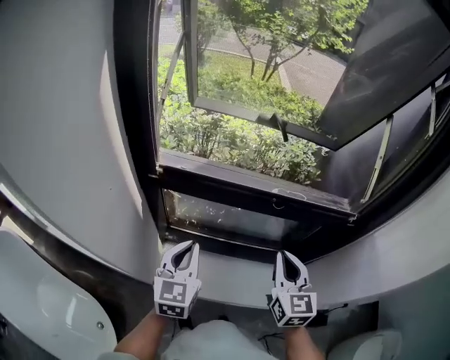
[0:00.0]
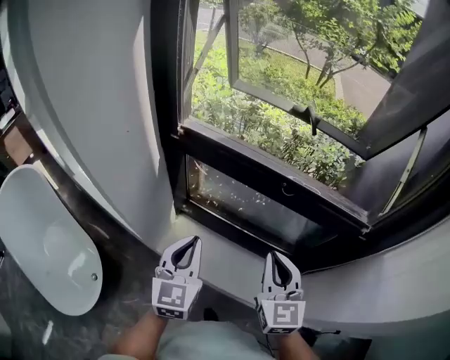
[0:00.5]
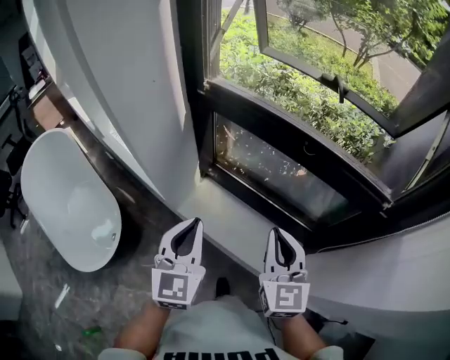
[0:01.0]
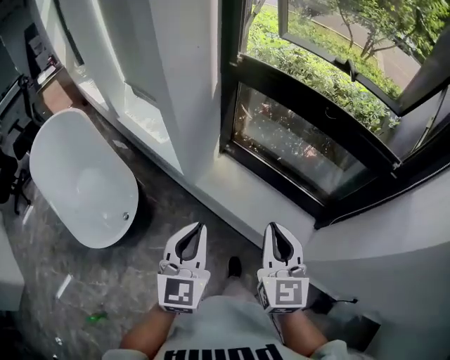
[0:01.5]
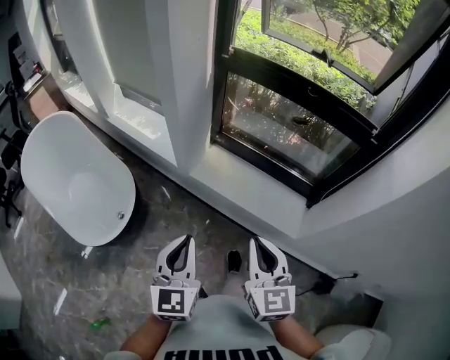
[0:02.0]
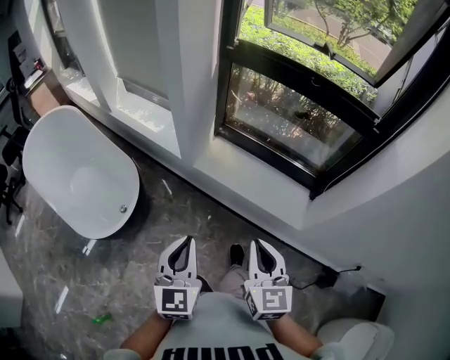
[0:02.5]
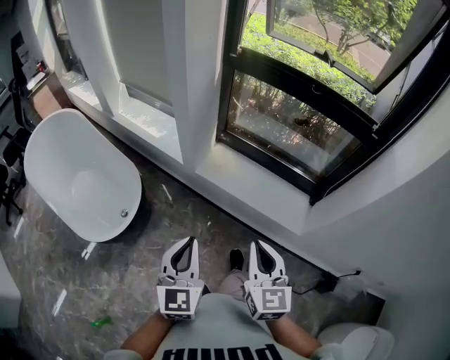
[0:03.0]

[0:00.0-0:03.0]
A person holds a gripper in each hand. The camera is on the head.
0:00.0 to 0:01.5: The right gripper shifts by approximately 25 cm, and rotates roughly 30 degrees. The left gripper moves approximately 35 cm, and turns by about 30 degrees.
0:01.5 to 0:03.0: The two grippers go about 20 cm backward and to the left.

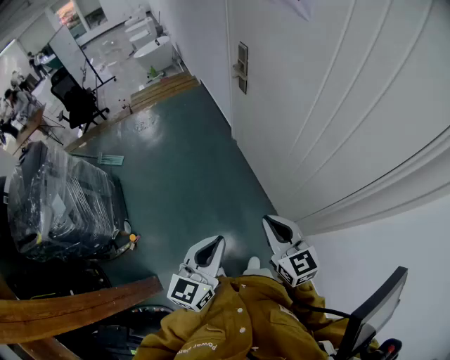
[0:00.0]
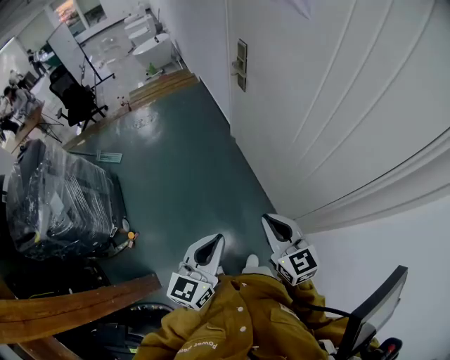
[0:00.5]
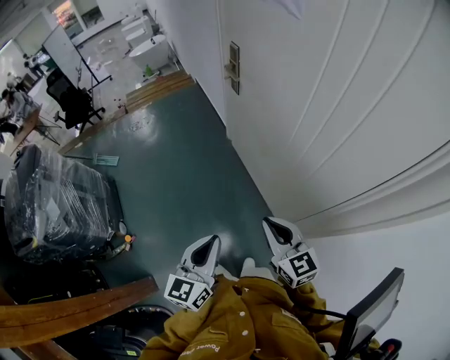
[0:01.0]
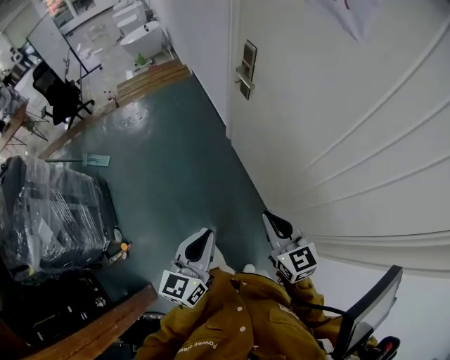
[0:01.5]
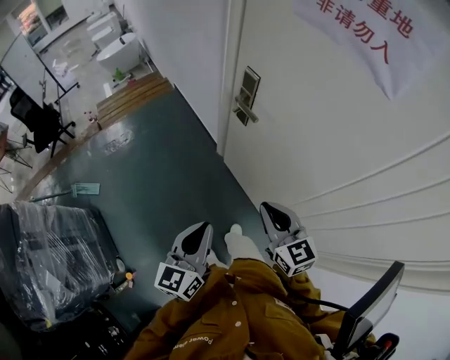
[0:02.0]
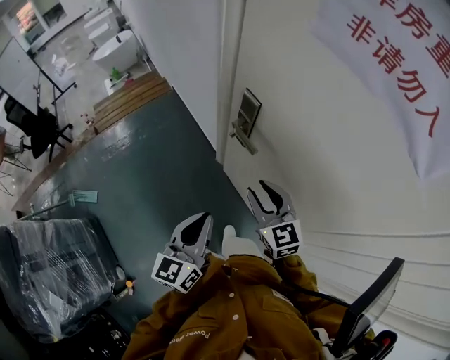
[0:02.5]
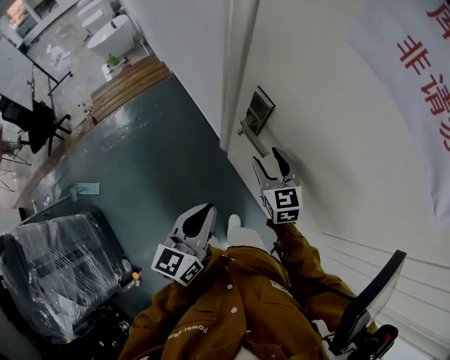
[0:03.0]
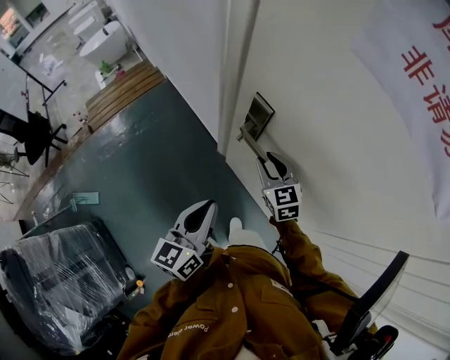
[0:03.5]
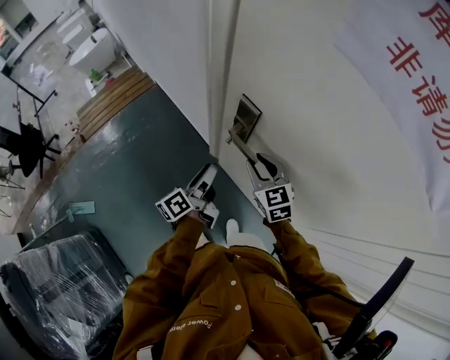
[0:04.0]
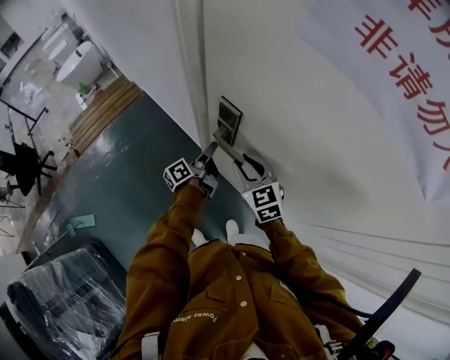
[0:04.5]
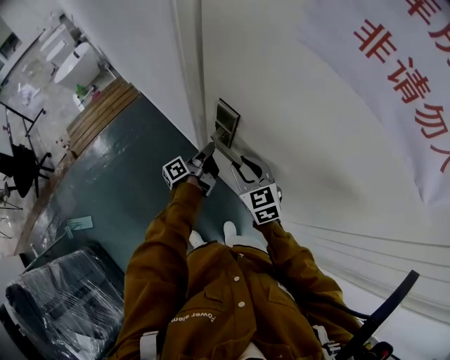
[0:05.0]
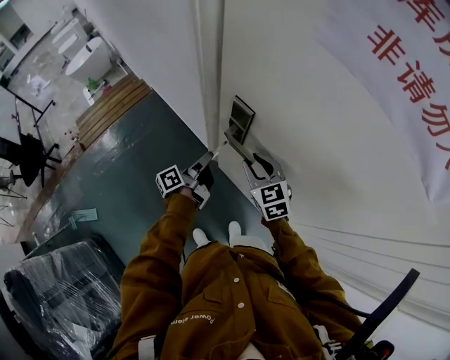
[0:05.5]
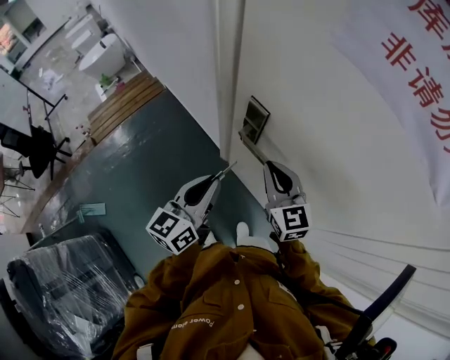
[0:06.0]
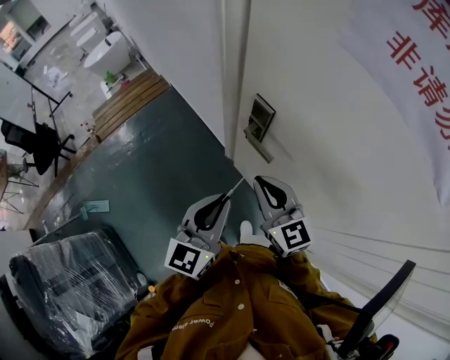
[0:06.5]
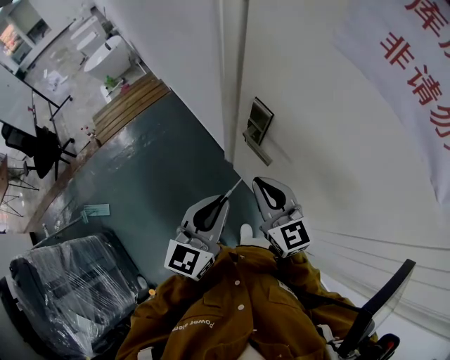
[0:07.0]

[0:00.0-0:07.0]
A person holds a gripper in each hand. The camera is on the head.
0:00.0 to 0:02.0: Both grippers travel together forward, about 35 cm.
0:02.0 to 0:03.5: Both grippers move forward, about 30 cm. The right gripper opens up.
0:03.5 to 0:05.0: The left gripper goes about 30 cm forward and downward, rotates around the line of its fingers by some 60 degrees, counterclockwise from behind, and opens and closes again.
0:05.0 to 0:07.0: The left gripper is displaced backward and upward by approximately 30 cm, and rotates around the line of its fingers by some 80 degrees, clockwise from behind. Meanwhile the right gripper goes roughly 15 cm upward and backward, swivels approximately 20 degrees, and closes its fingers.

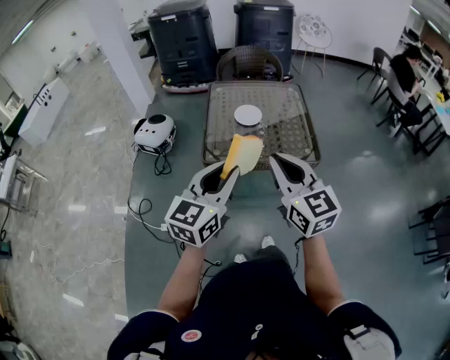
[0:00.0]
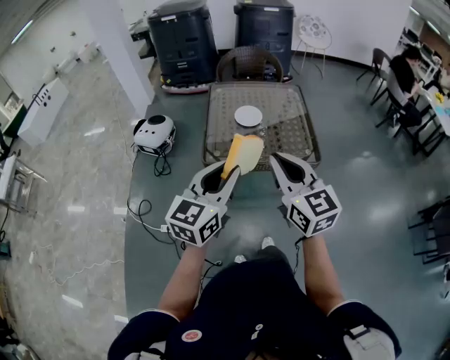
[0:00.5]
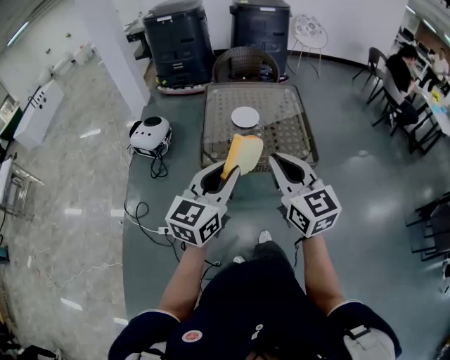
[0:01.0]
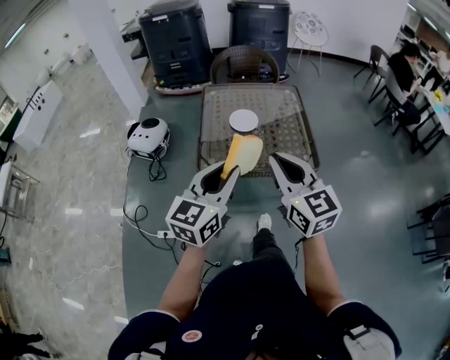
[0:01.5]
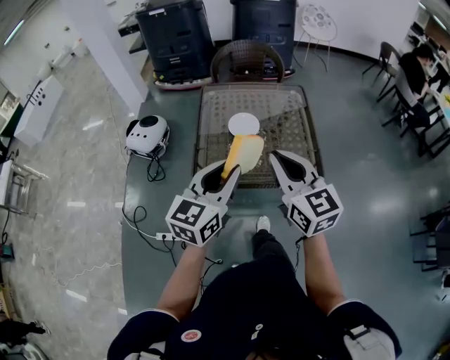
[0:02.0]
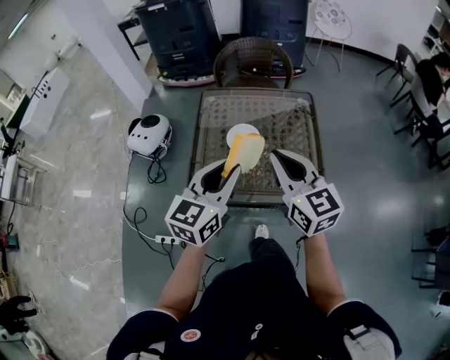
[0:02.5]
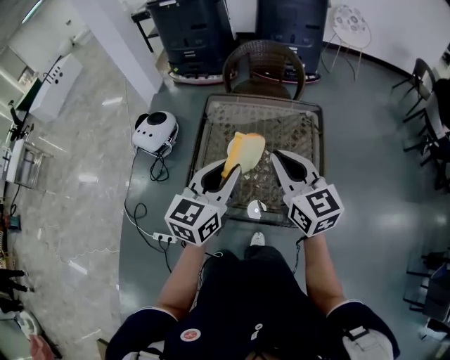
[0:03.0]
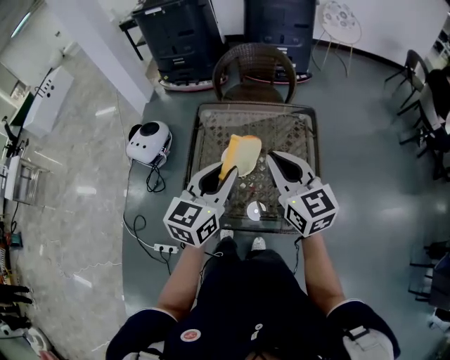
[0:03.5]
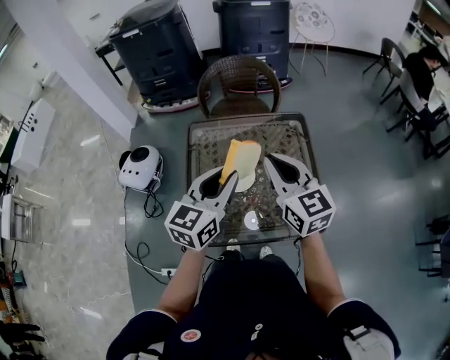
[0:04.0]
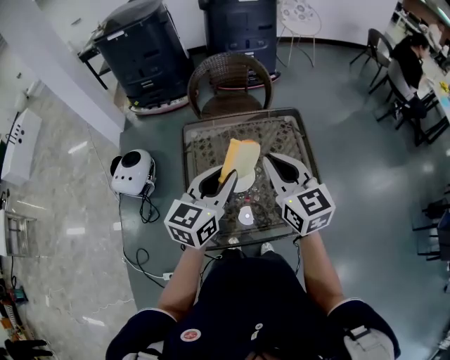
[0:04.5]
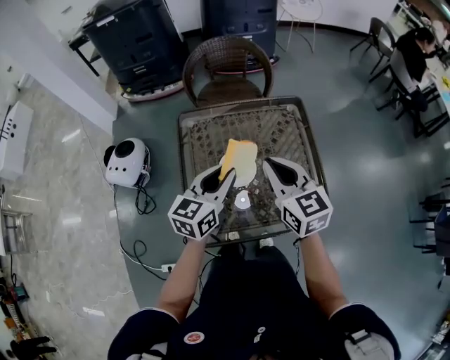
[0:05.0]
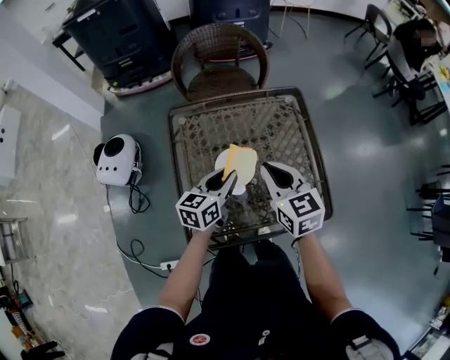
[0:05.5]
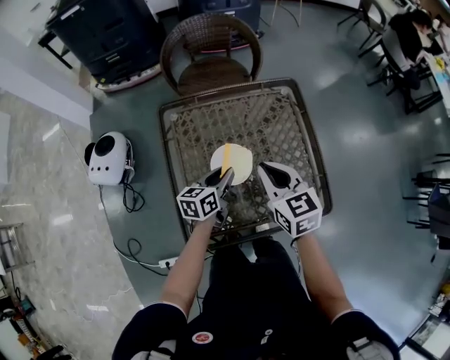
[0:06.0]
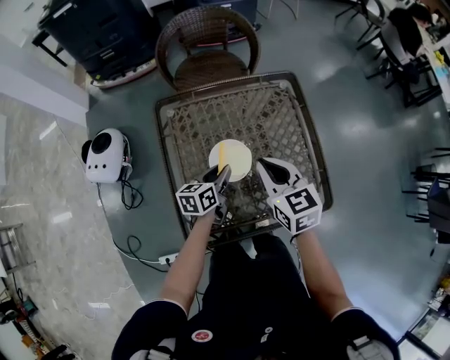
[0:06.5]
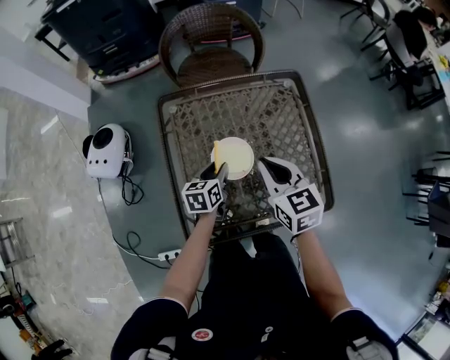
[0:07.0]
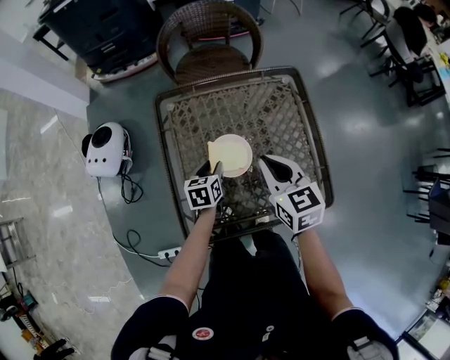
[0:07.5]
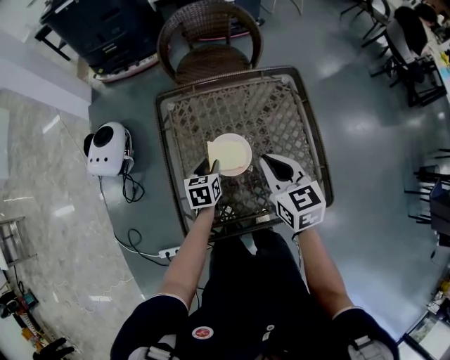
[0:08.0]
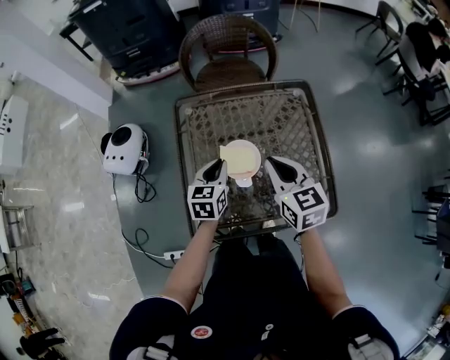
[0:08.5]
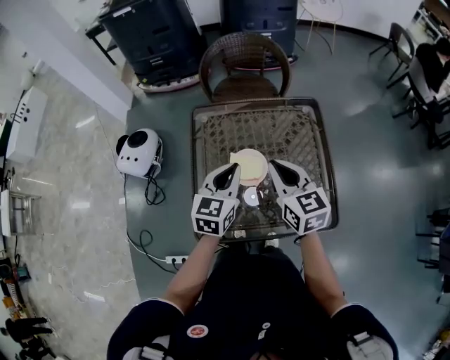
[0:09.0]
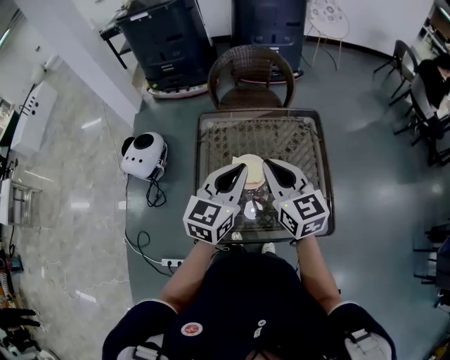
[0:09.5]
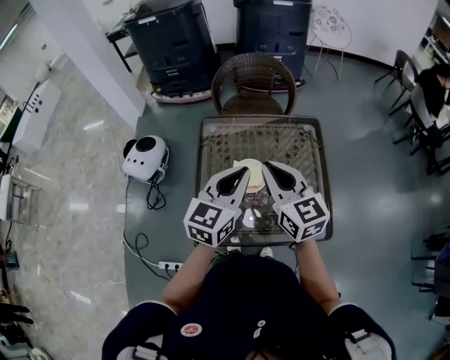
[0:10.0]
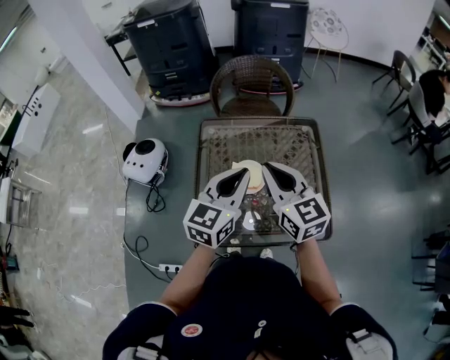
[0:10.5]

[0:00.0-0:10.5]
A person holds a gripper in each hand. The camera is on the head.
0:00.0 to 0:02.0: The grippers both shift forward by about 15 cm.
0:02.0 to 0:04.0: Both grippers travel together forward, about 25 cm.
0:04.0 to 0:06.5: The left gripper is displaced downward by roughly 30 cm, and rotates roughly 40 degrees; the right gripper shifts some 15 cm downward, and rotates approximately 30 degrees.
0:06.5 to 0:08.5: The left gripper goes some 5 cm upward, and changes its angle by roughly 30 degrees.
0:08.5 to 0:10.5: The right gripper travels upward by some 15 cm, and swivels about 20 degrees; the left gripper heads upward, covering some 20 cm, and changes its angle by roughly 30 degrees.

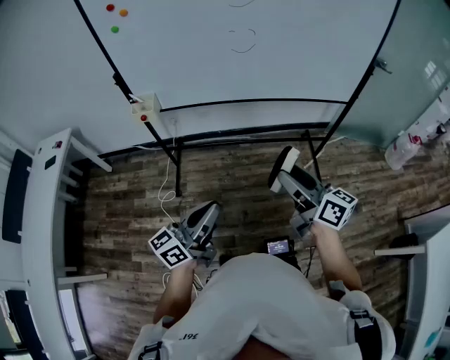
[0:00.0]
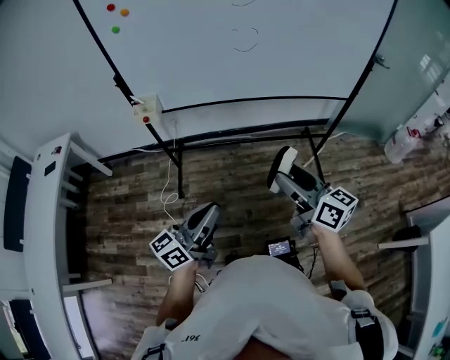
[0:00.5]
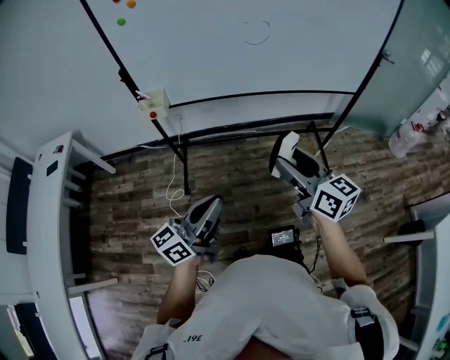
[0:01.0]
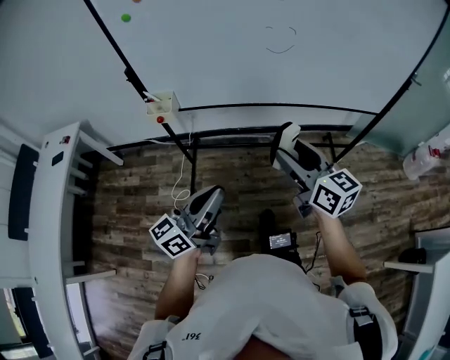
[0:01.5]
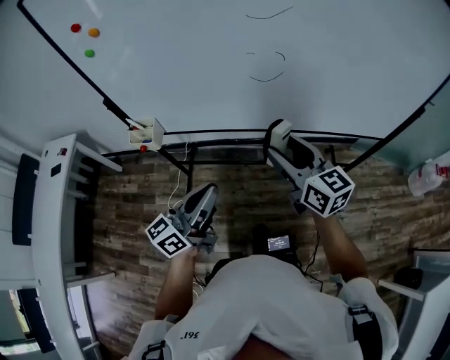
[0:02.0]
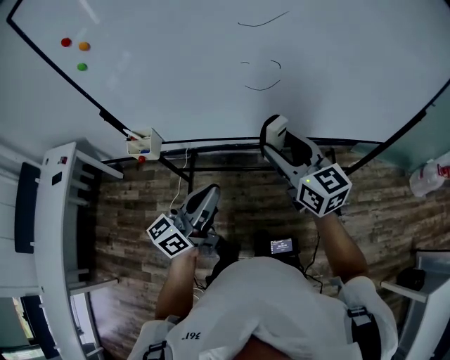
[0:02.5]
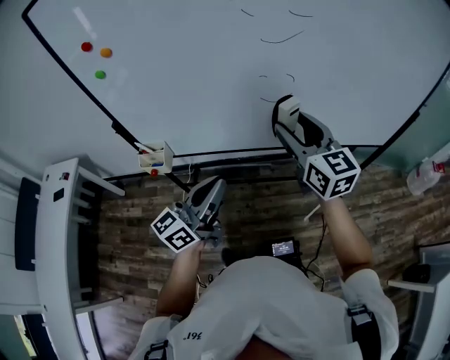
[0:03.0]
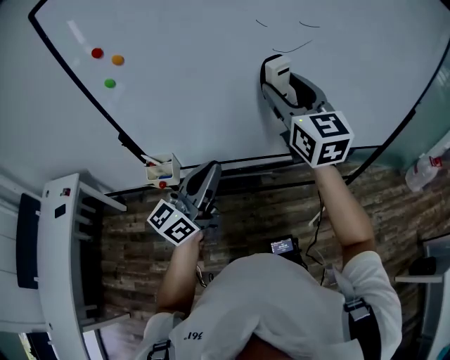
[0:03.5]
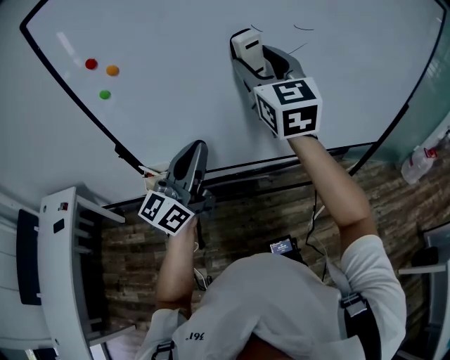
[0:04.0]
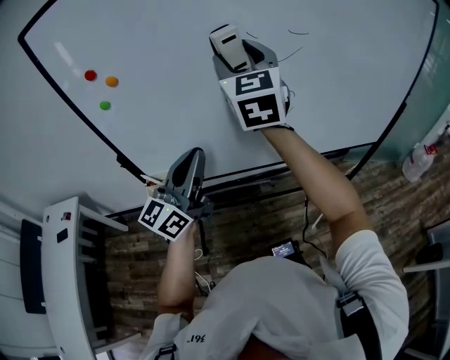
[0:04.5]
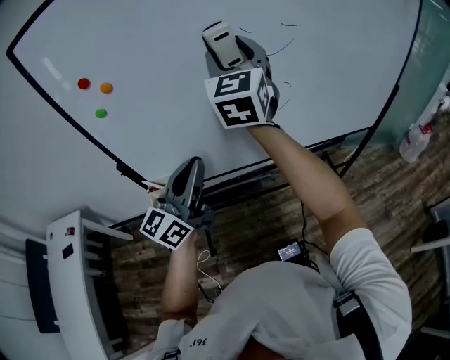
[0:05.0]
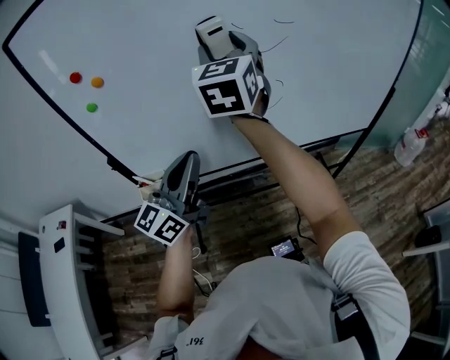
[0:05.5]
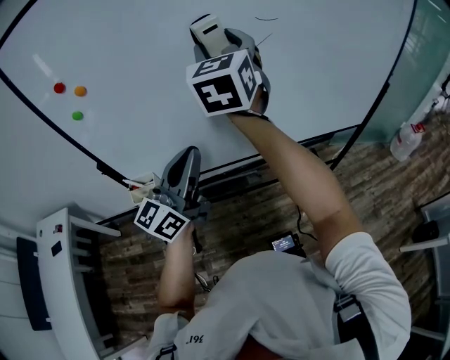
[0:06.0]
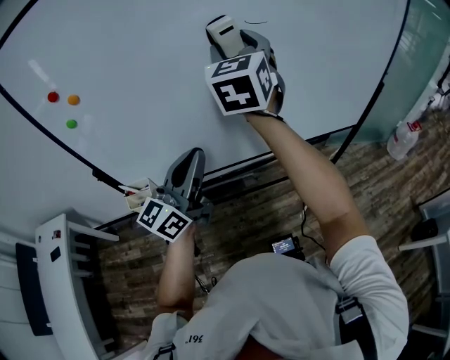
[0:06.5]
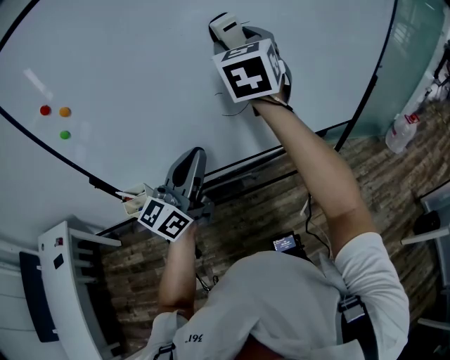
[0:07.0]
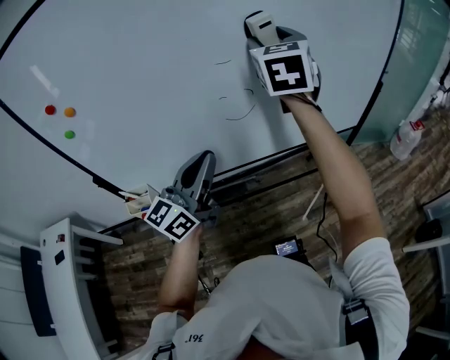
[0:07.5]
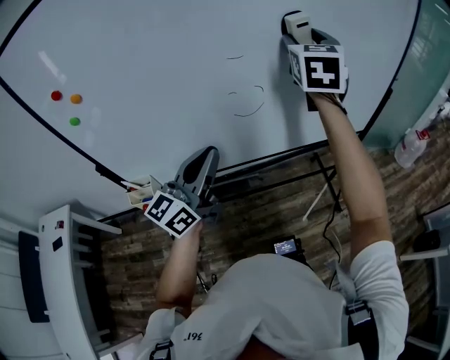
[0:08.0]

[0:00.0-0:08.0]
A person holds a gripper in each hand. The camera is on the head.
0:00.0 to 0:02.0: The grippers both shift forward by roughly 30 cm. The right gripper turns by roughly 20 degrees.
0:02.0 to 0:04.0: Both grippers travel together upward, forward and to the left, some 25 cm. The left gripper changes its angle by roughly 20 degrees. The right gripper swivels approximately 40 degrees.
0:06.0 to 0:08.0: The right gripper moves to the right and forward, roughly 25 cm. Meanwhile the left gripper travels to the right by some 5 cm.
